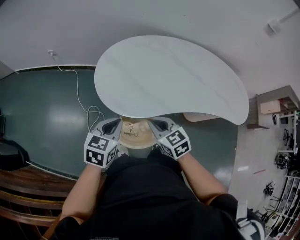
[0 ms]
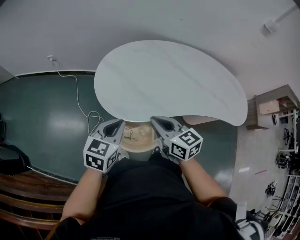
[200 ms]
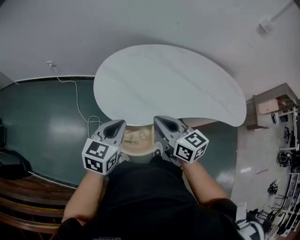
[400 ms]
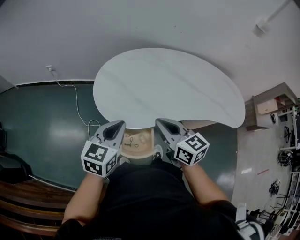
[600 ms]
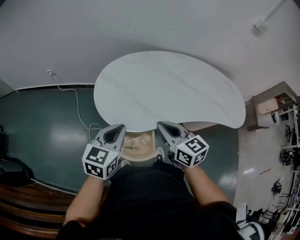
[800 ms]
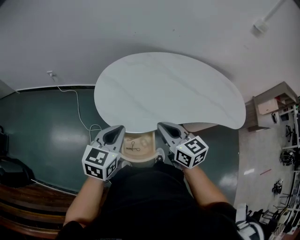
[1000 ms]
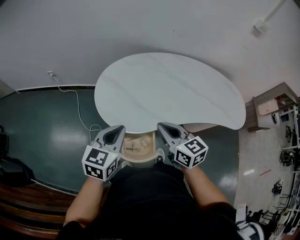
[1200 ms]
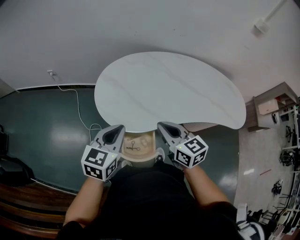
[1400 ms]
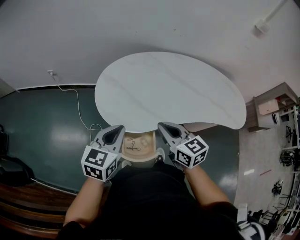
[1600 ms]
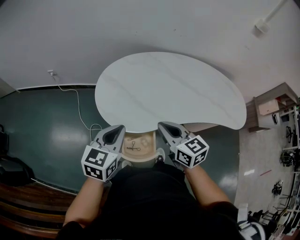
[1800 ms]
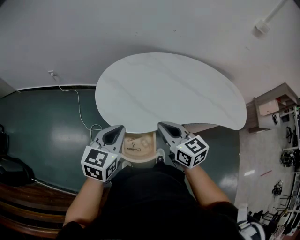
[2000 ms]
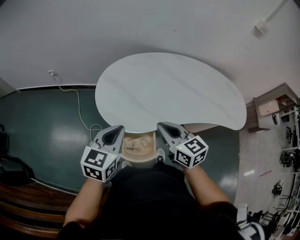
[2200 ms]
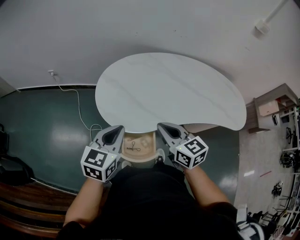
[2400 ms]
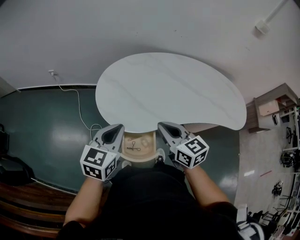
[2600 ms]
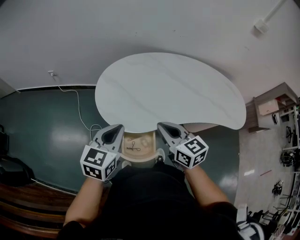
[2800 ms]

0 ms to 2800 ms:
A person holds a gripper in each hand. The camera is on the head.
0 ms to 1400 ms: The grippers both shift upward by approximately 10 cm. The right gripper changes its angle by about 20 degrees.
1400 ms to 2800 ms: Both grippers stay put.

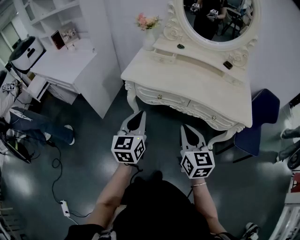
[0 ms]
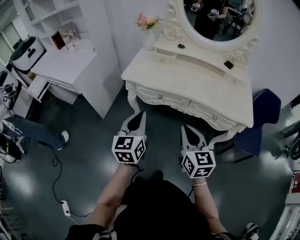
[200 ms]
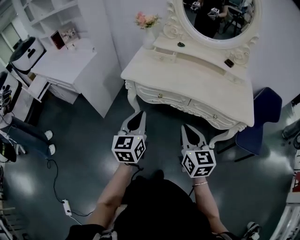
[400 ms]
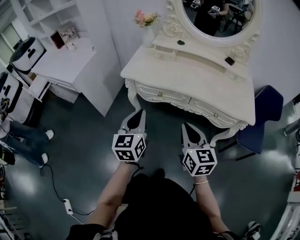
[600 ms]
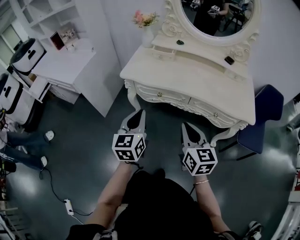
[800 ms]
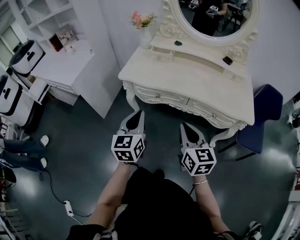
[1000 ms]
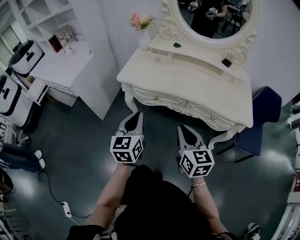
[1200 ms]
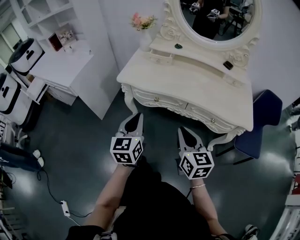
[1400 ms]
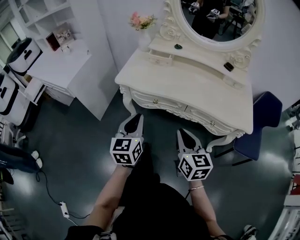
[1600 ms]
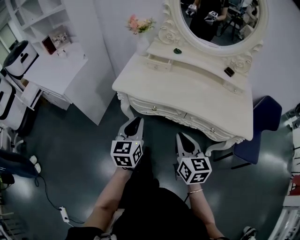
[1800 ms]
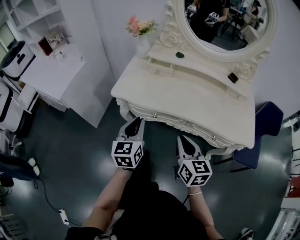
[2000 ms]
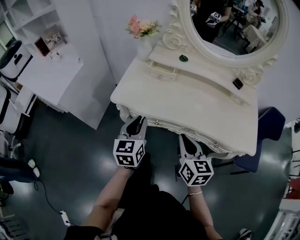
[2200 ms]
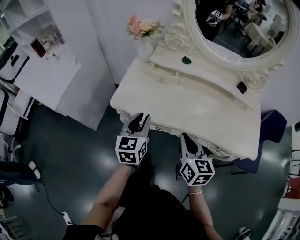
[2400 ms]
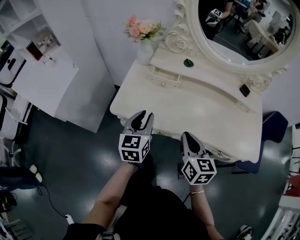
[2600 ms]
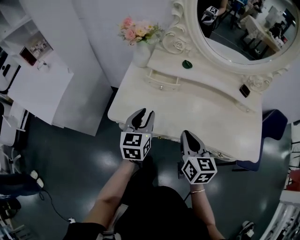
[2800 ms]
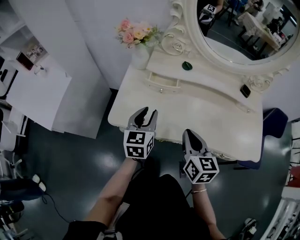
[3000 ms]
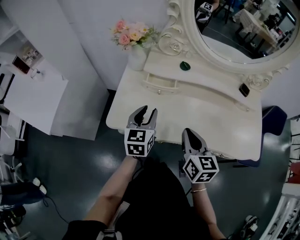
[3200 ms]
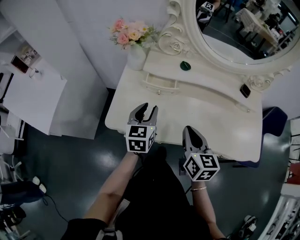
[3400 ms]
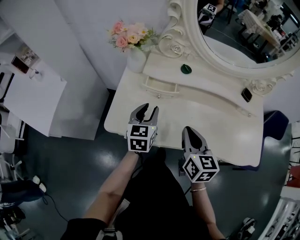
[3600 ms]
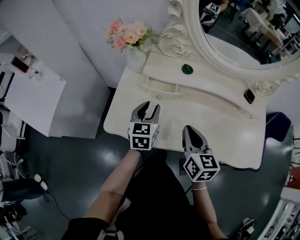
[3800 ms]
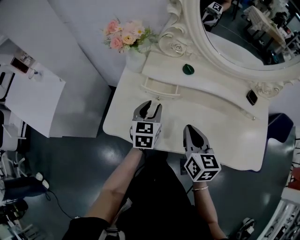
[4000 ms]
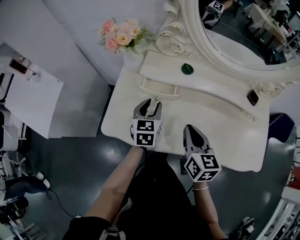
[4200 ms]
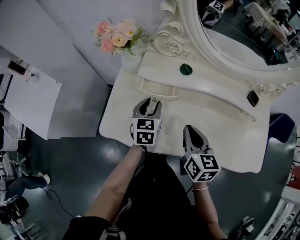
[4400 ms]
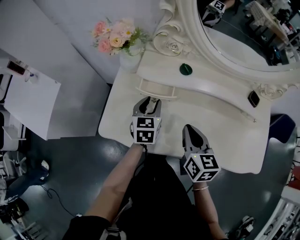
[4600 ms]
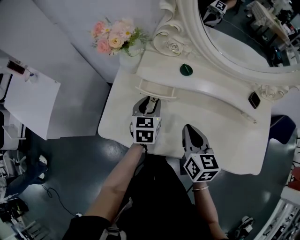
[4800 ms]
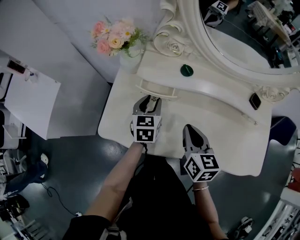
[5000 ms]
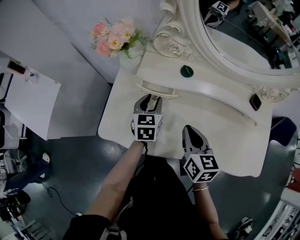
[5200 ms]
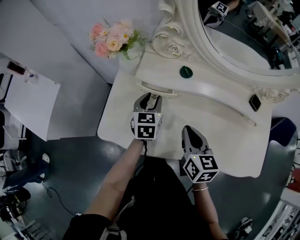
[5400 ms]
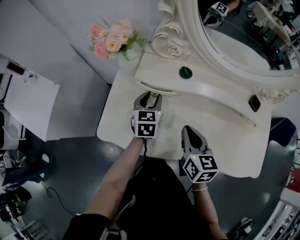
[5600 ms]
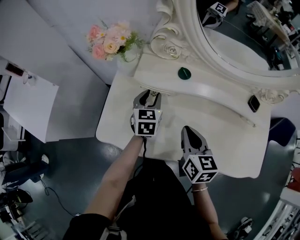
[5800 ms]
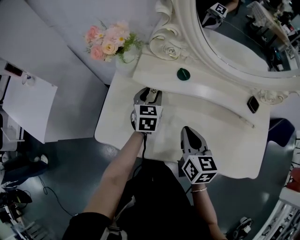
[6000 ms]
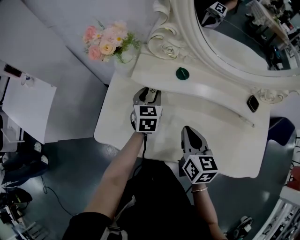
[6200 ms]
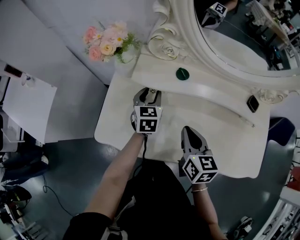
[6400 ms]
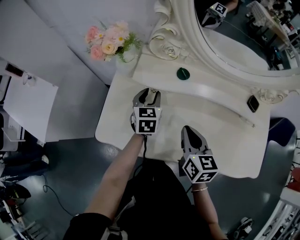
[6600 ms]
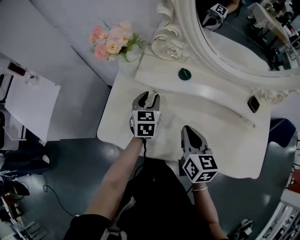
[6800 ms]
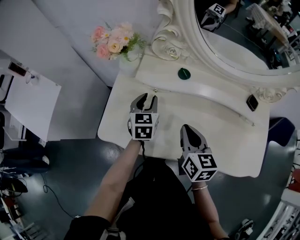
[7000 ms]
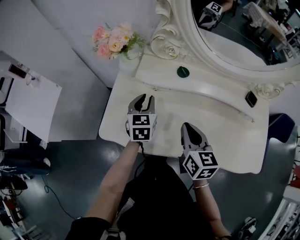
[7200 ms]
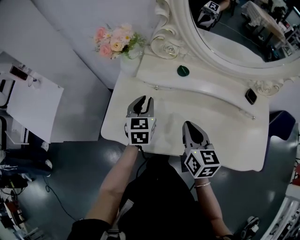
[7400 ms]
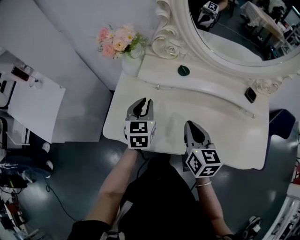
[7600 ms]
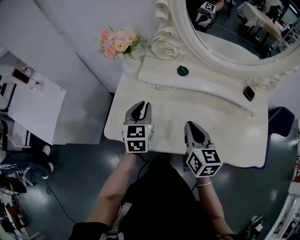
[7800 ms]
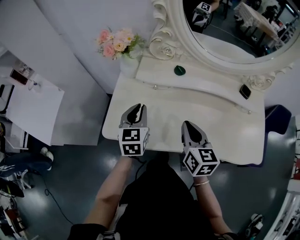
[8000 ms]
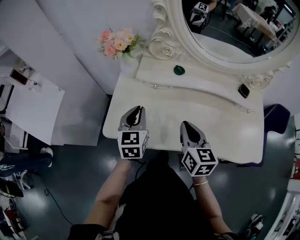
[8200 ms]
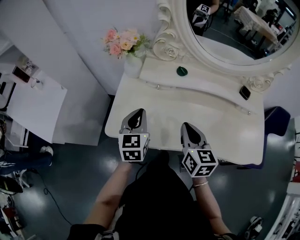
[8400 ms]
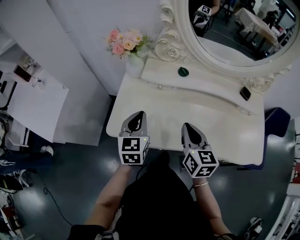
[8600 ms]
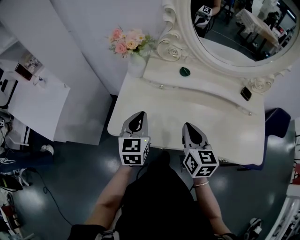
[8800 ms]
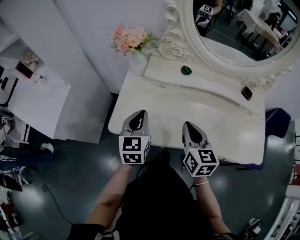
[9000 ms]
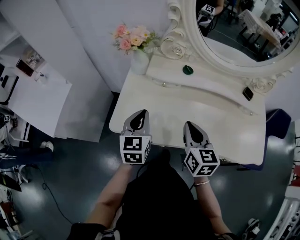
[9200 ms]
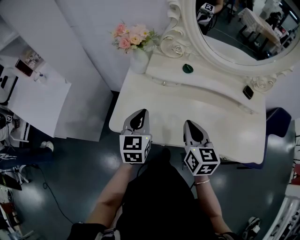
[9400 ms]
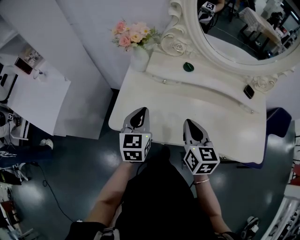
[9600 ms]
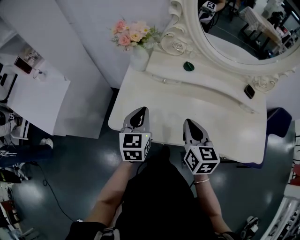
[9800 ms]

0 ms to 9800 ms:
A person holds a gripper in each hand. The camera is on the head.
0 ms to 1400 ms: There are only small adjustments of the grippers.
1400 ms to 2800 ms: The grippers both shift forward by about 30 cm. The left gripper opens its fingers.
2800 ms to 4200 ms: The right gripper moves forward, roughly 10 cm, while the left gripper travels forward and downward by about 15 cm.
4200 ms to 5600 ms: The left gripper goes approximately 5 cm forward.
5600 ms to 7000 ms: There are only small adjustments of the grippers.
7000 ms to 8400 ms: The left gripper is displaced backward, upward and to the left by some 15 cm, and closes its fingers; the right gripper shifts by roughly 5 cm.
8400 ms to 9800 ms: The grippers move only a little.

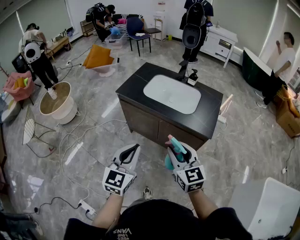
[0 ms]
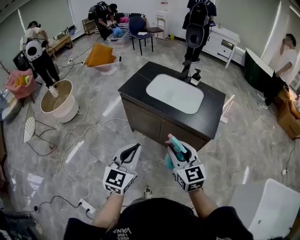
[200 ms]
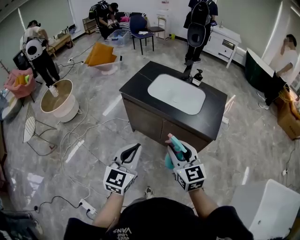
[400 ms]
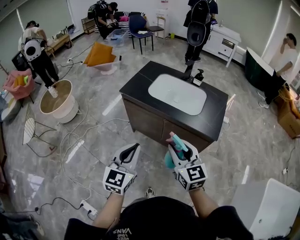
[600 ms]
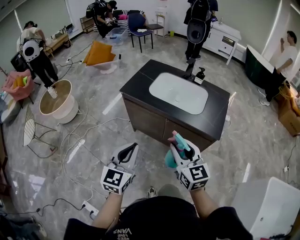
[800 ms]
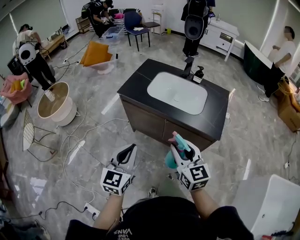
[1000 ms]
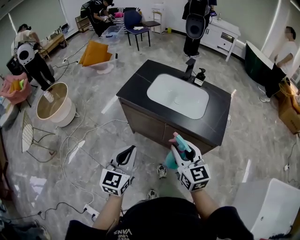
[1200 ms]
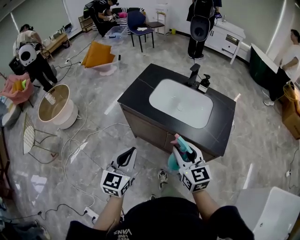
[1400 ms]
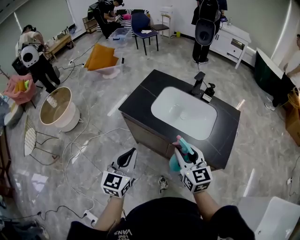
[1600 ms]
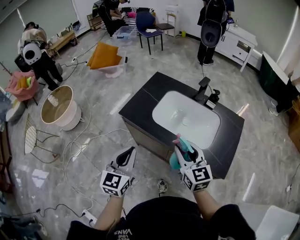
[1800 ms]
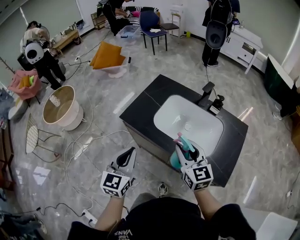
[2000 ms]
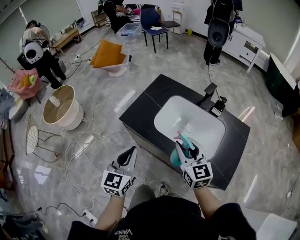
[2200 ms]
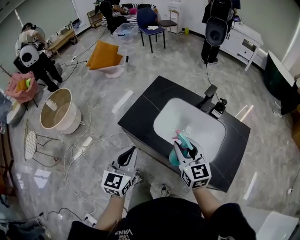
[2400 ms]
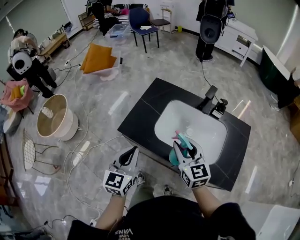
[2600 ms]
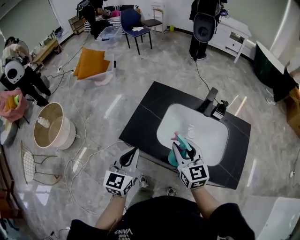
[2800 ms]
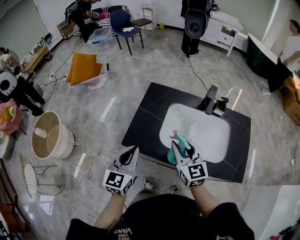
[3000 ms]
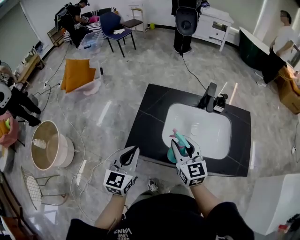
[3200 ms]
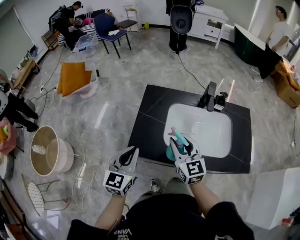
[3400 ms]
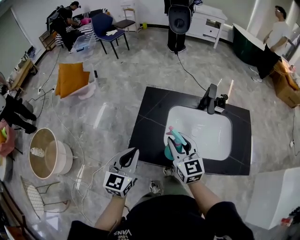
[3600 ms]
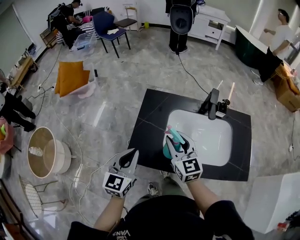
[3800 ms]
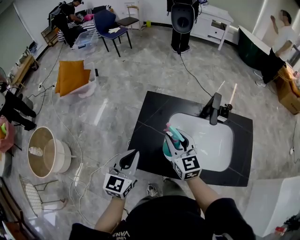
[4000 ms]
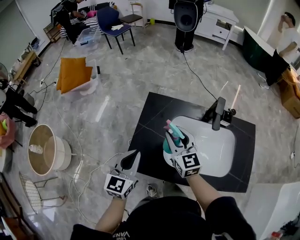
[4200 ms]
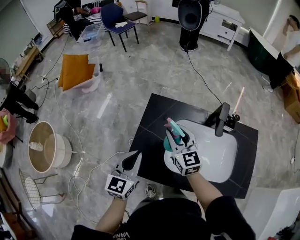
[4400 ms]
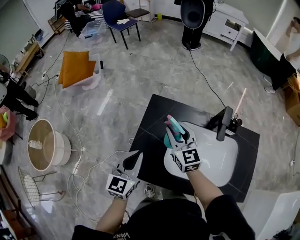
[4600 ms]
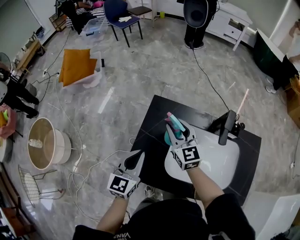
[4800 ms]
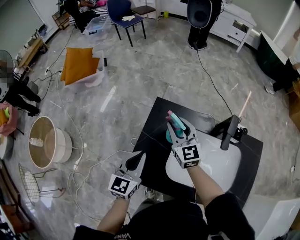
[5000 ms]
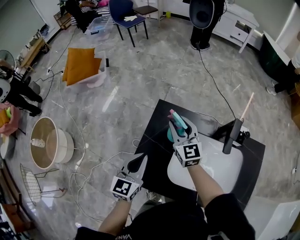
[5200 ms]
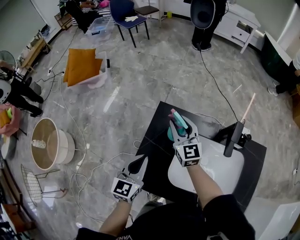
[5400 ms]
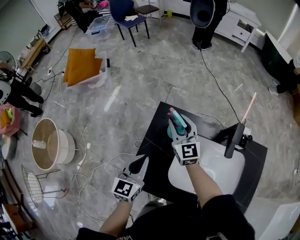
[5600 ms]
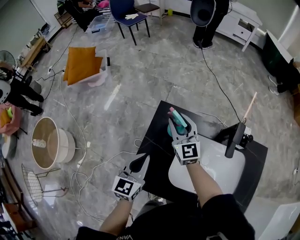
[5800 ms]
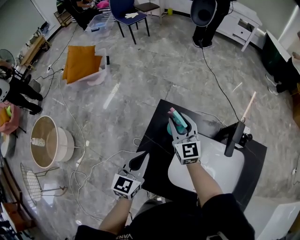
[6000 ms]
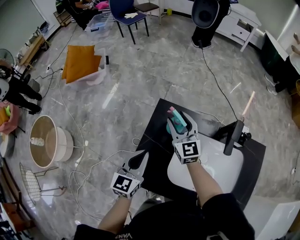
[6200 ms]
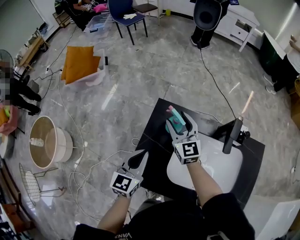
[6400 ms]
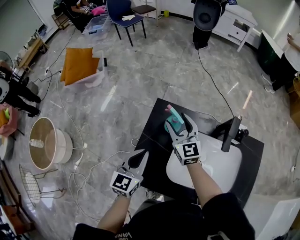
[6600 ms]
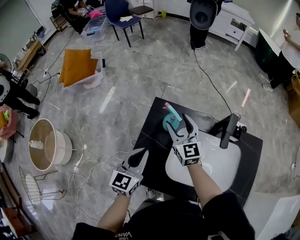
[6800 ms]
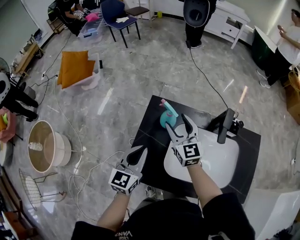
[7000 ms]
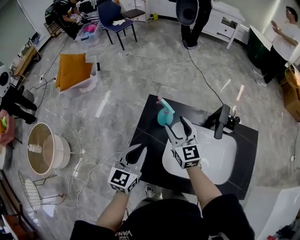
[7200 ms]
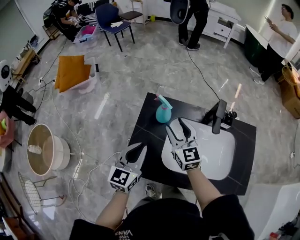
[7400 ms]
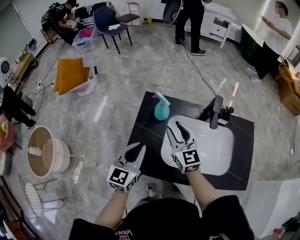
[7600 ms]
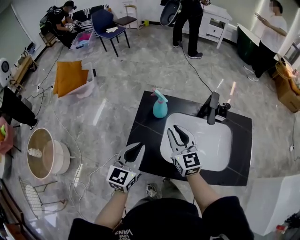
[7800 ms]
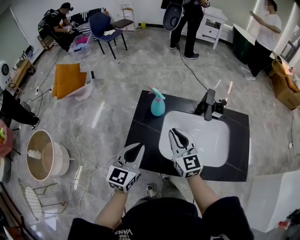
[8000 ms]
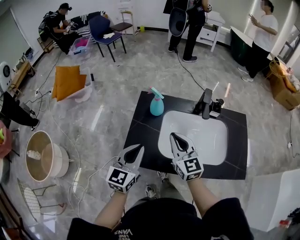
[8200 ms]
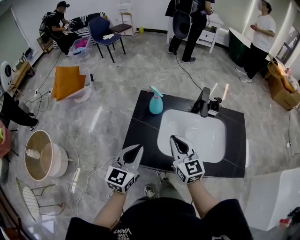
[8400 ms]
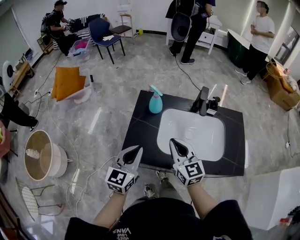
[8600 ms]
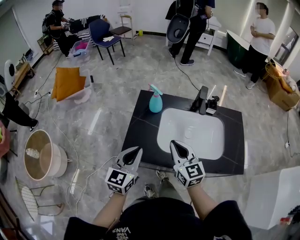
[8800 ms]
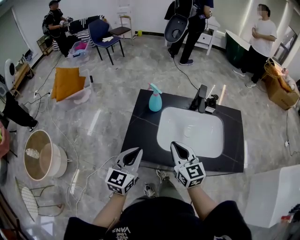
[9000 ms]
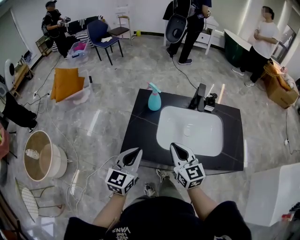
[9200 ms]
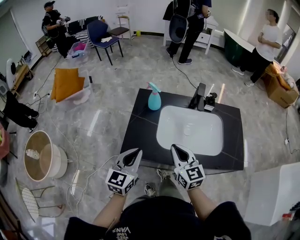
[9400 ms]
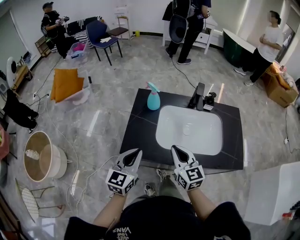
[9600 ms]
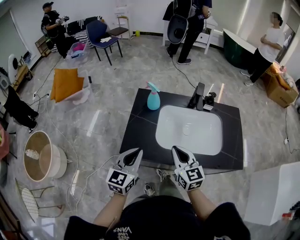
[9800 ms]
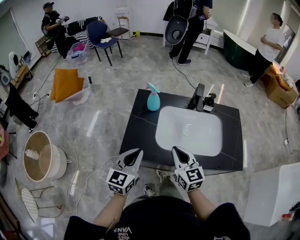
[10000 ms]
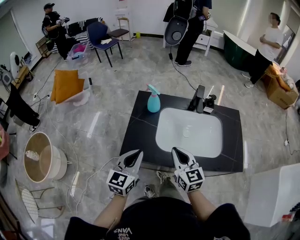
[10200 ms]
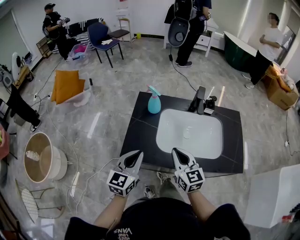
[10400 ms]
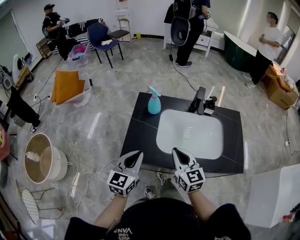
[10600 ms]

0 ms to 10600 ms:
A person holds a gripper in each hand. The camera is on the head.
0 ms to 1600 ms: The grippers both shift forward by about 20 cm.
1600 ms to 3000 ms: The two grippers go some 25 cm forward.
3000 ms to 4600 ms: The grippers both shift forward by about 20 cm.
4600 ms to 6000 ms: The right gripper shifts about 10 cm forward. Meanwhile the left gripper shifts about 5 cm forward.
6000 ms to 7600 ms: The left gripper goes about 5 cm backward. Meanwhile the right gripper heads backward, covering about 15 cm, and opens and closes again.
7600 ms to 9000 ms: Both grippers travel together backward, roughly 15 cm. The right gripper closes up.
9000 ms to 10600 ms: The grippers stay close to where they were, moving slightly.

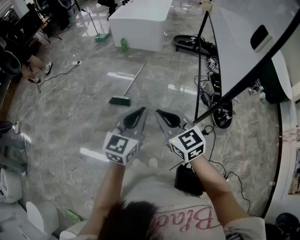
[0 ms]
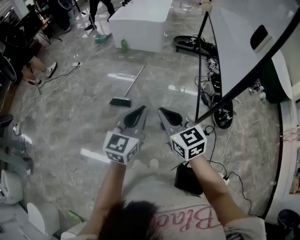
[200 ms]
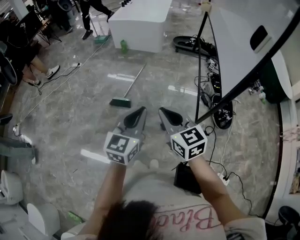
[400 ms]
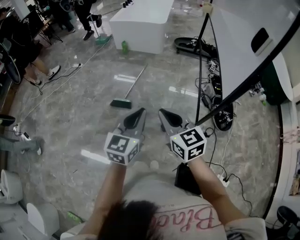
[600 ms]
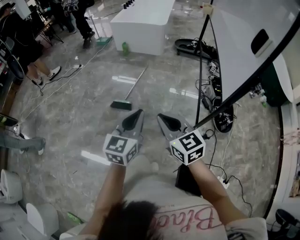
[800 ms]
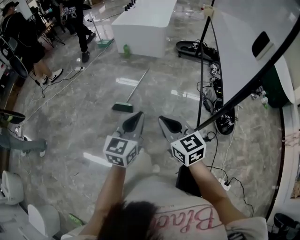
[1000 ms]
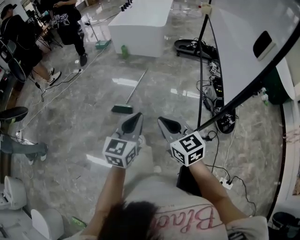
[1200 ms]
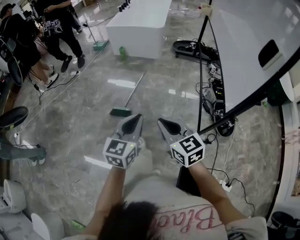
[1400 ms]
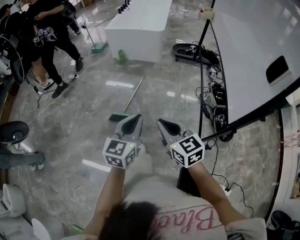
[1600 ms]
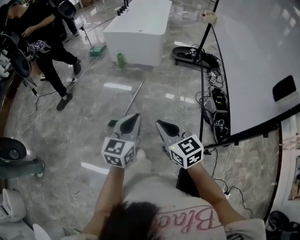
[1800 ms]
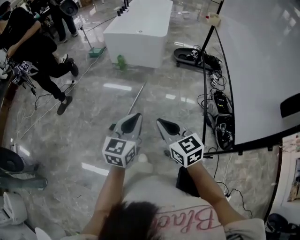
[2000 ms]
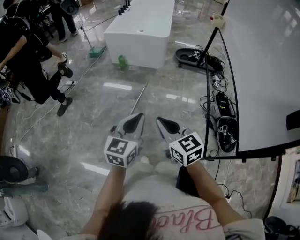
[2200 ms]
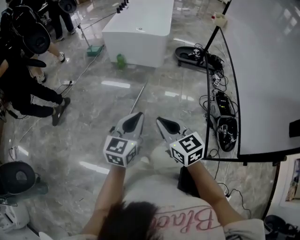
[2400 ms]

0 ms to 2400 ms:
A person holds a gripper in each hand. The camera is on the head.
0 ms to 1200 ms: There are only small adjustments of the grippers.
1200 ms to 2400 ms: The grippers both shift forward by about 25 cm.
